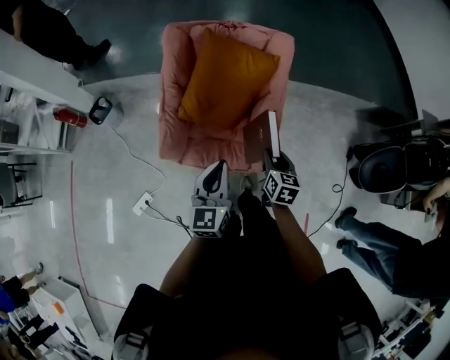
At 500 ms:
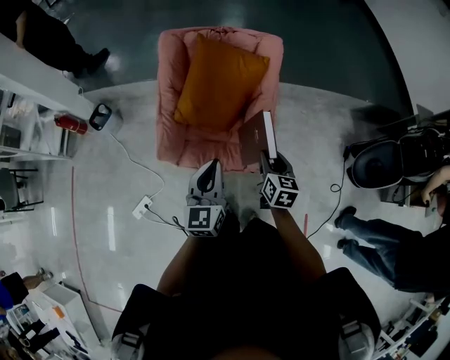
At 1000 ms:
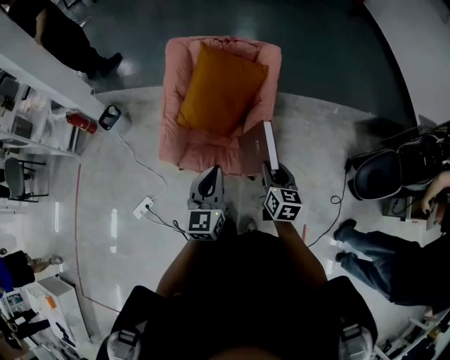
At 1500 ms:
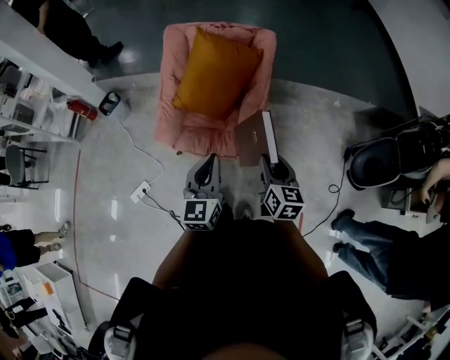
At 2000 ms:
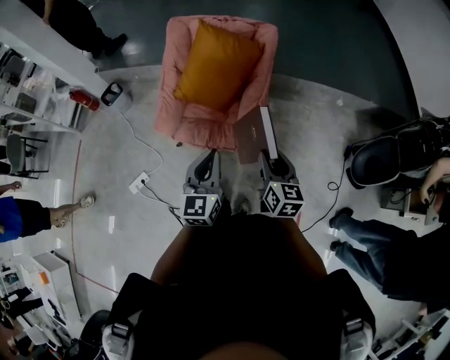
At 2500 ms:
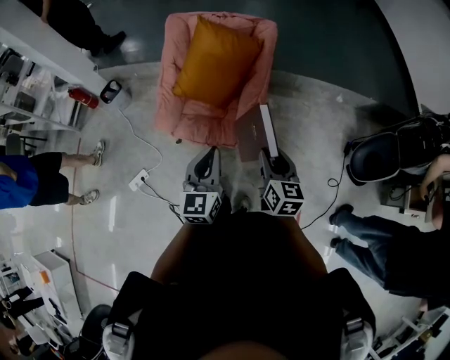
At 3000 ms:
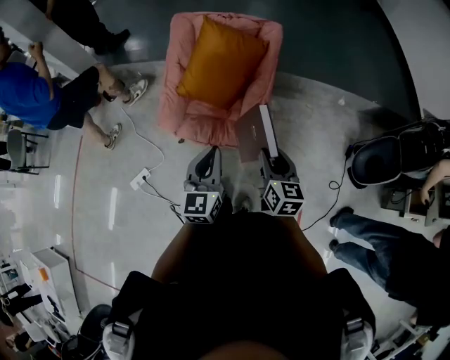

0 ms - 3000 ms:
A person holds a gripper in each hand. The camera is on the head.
0 ms - 1500 ms: The left gripper travels backward, to the right and upward by roughly 15 cm, while the right gripper goes about 20 cm backward, upward and to the right.
1500 ms - 3000 ms: The grippers move only a little.

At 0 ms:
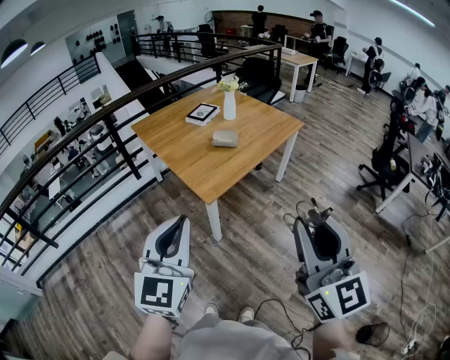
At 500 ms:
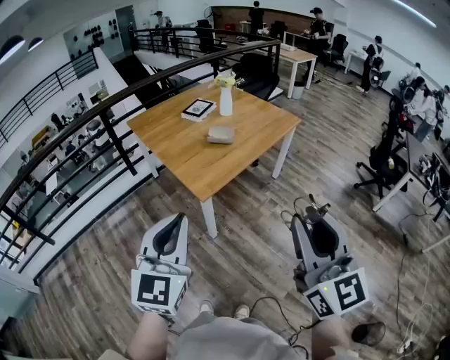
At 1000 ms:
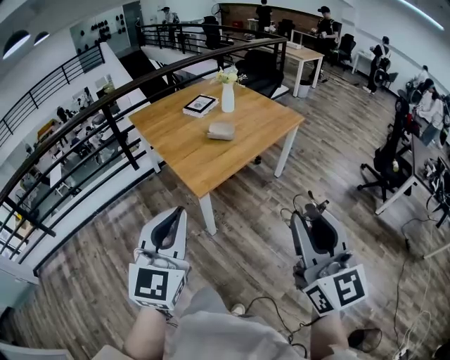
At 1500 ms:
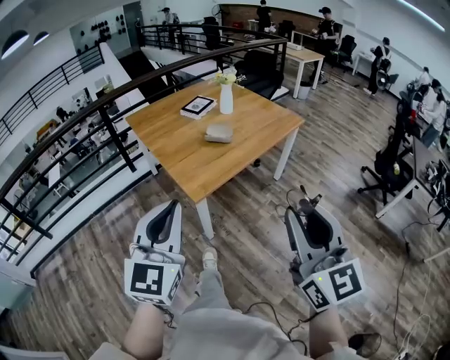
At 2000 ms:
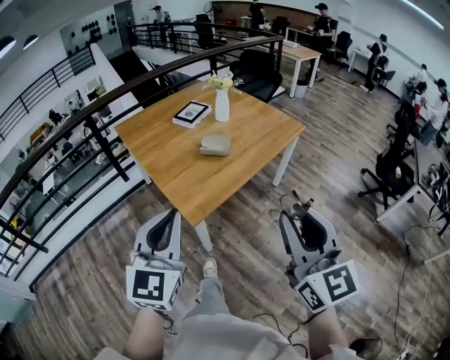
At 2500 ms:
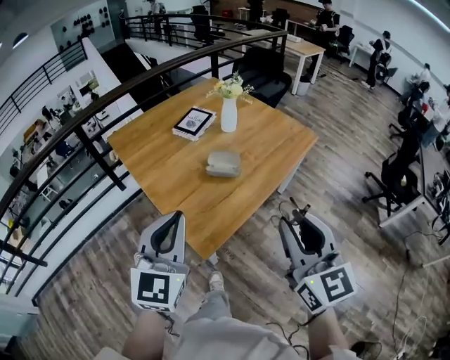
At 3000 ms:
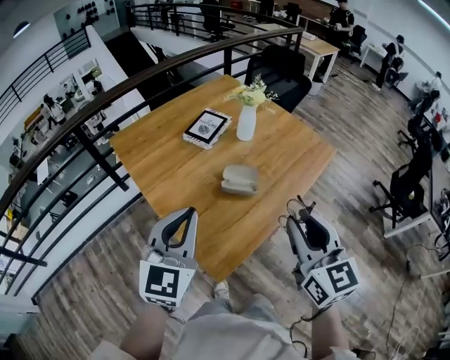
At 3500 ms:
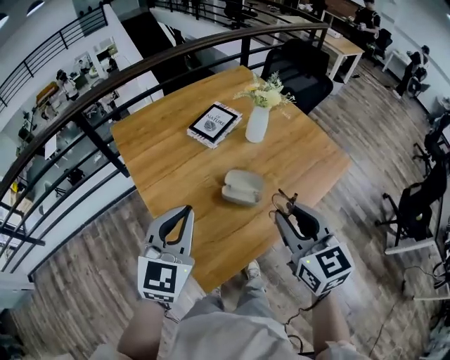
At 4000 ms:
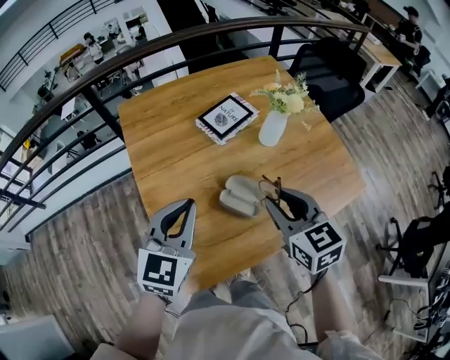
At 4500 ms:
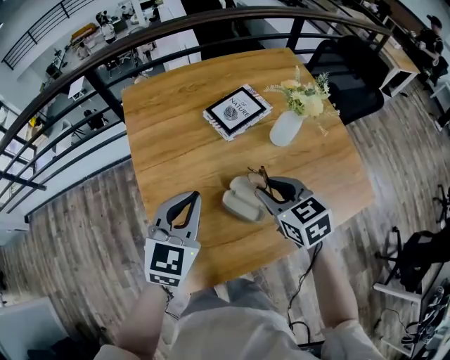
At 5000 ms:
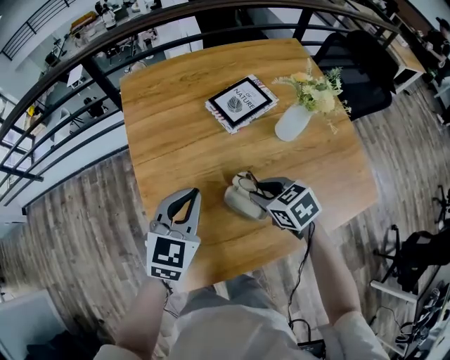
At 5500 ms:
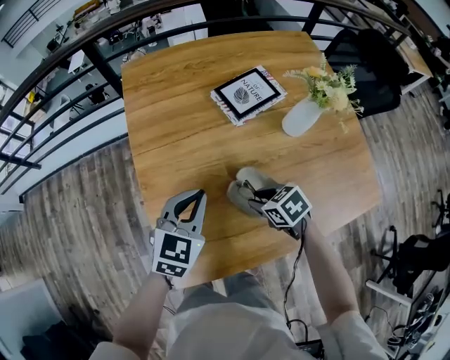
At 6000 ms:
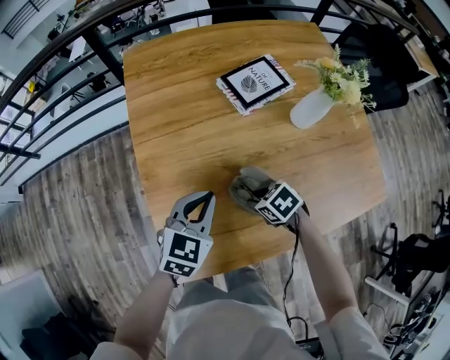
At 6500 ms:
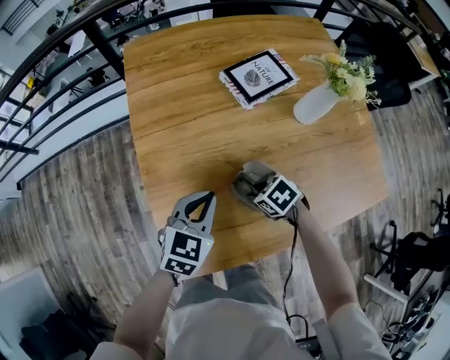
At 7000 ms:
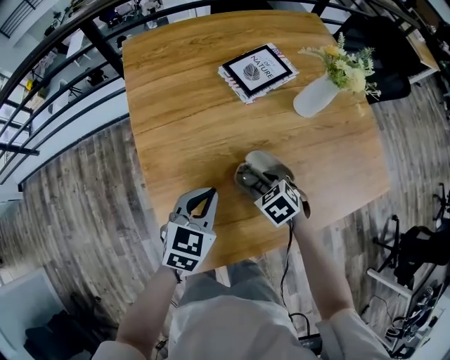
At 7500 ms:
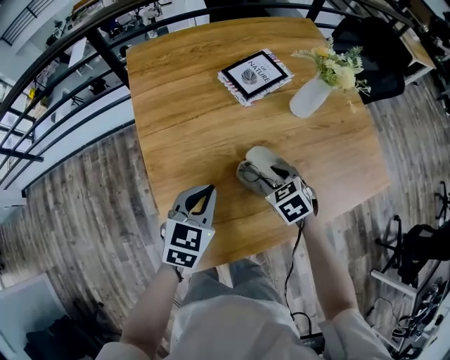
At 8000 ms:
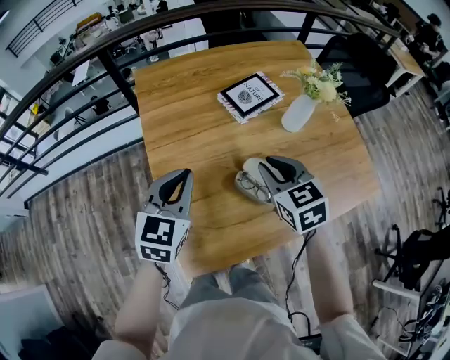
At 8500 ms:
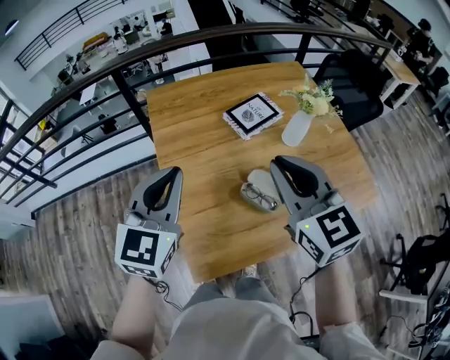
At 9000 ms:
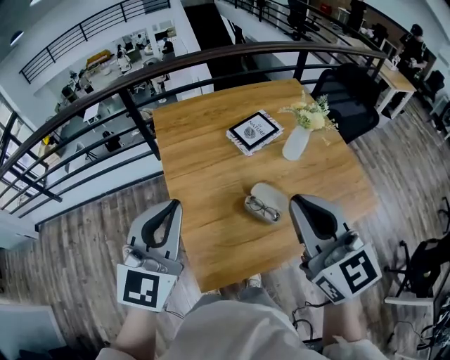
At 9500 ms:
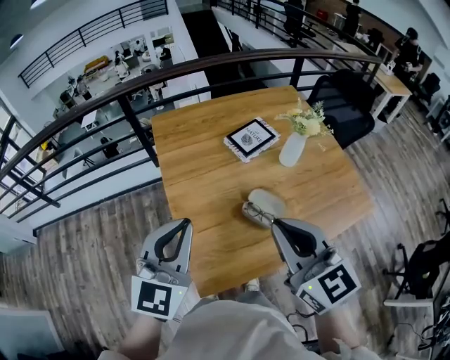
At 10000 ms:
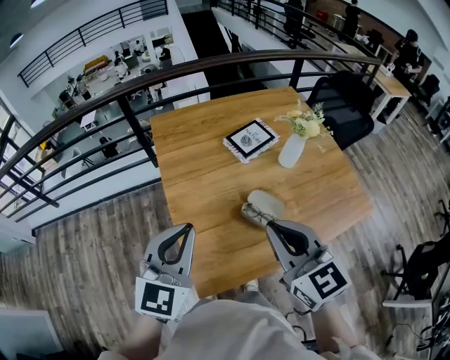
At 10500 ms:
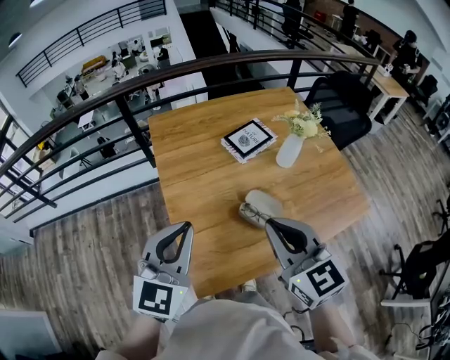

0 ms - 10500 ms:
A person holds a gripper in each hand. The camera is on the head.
0 ms - 2000 ms: The grippers both shift forward by roughly 20 cm.
2000 ms - 4000 ms: The pair of grippers is taken forward, some 50 cm. The right gripper angles its fingers downward, by some 30 degrees.
4000 ms - 6500 ms: The right gripper moves downward, some 30 cm, and points its fingers some 40 degrees further downward; the left gripper is displaced downward by about 20 cm, and swivels some 20 degrees.
6500 ms - 8500 ms: The left gripper moves upward, roughly 25 cm, and changes its angle by approximately 30 degrees; the right gripper is displaced upward by approximately 40 cm, angles its fingers upward, by roughly 50 degrees, and closes its fingers.
8500 ms - 10500 ms: Both grippers travel together backward, about 10 cm.

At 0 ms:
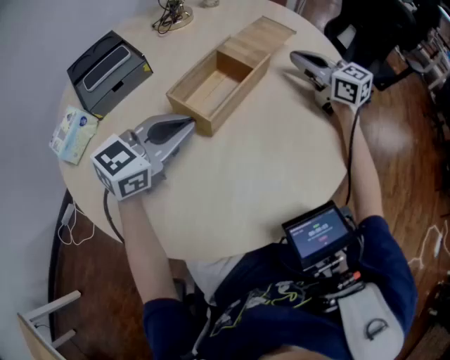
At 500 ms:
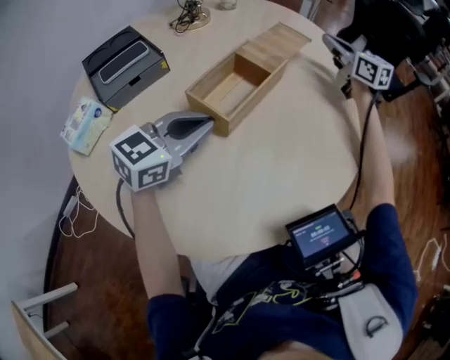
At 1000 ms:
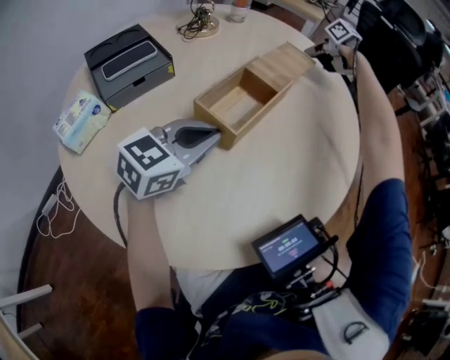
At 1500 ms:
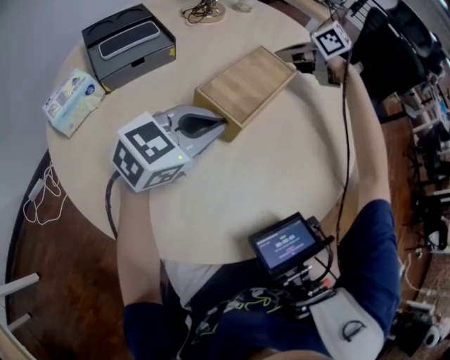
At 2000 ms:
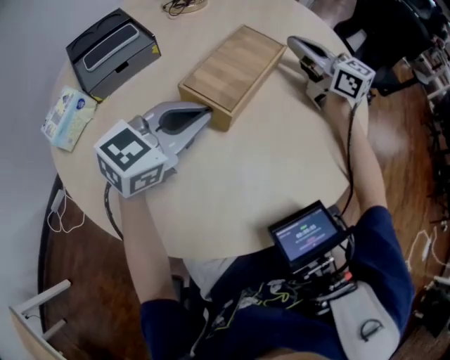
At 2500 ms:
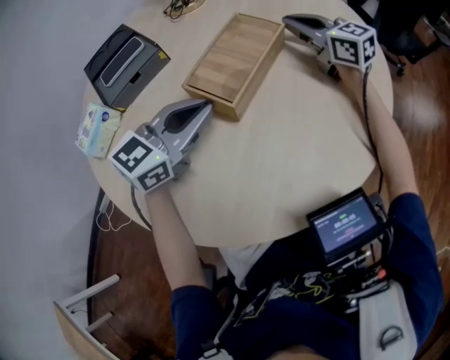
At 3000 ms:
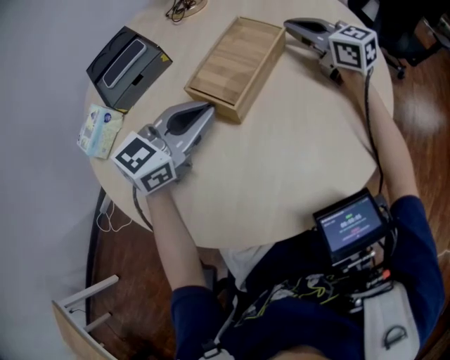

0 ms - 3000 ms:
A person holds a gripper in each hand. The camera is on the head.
0 ms - 1500 ms: The right gripper moves about 5 cm upward and comes back, and angles its fingers downward, by about 30 degrees.
1500 ms - 3000 ms: The right gripper moves approximately 5 cm, and tips its fingers upward by about 30 degrees.

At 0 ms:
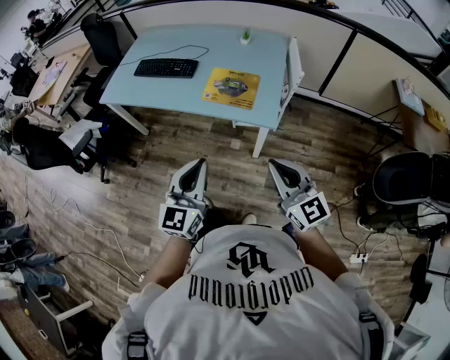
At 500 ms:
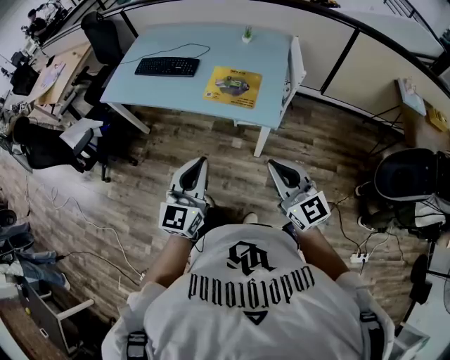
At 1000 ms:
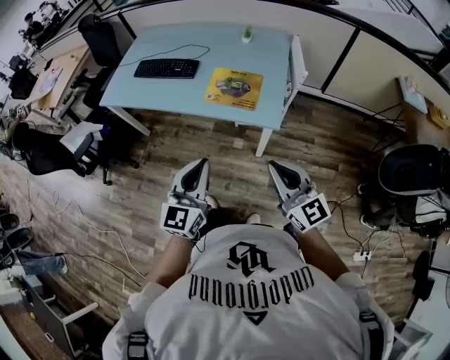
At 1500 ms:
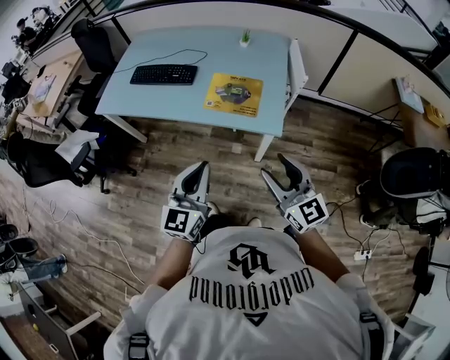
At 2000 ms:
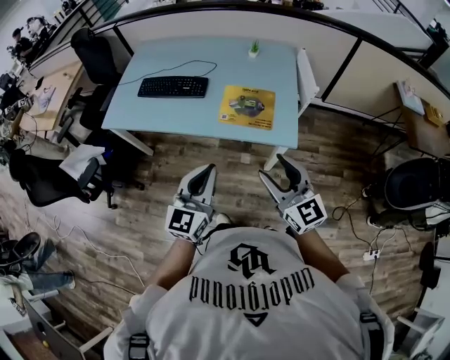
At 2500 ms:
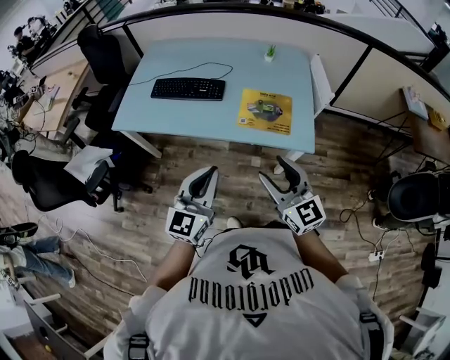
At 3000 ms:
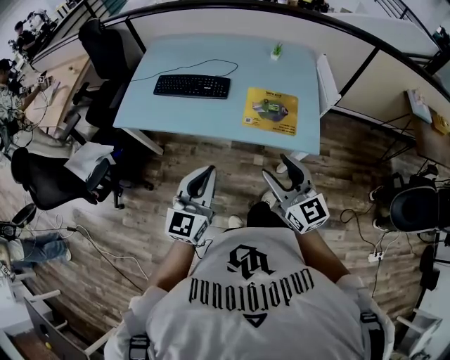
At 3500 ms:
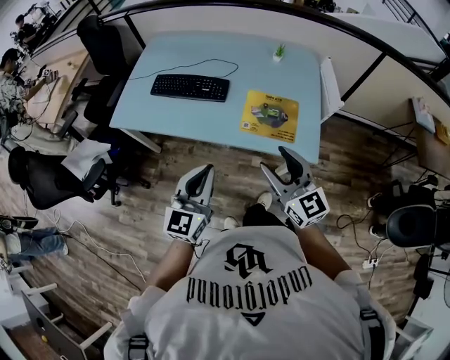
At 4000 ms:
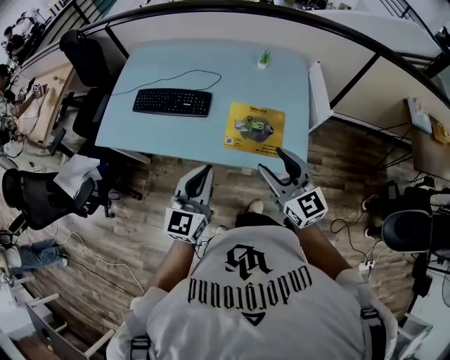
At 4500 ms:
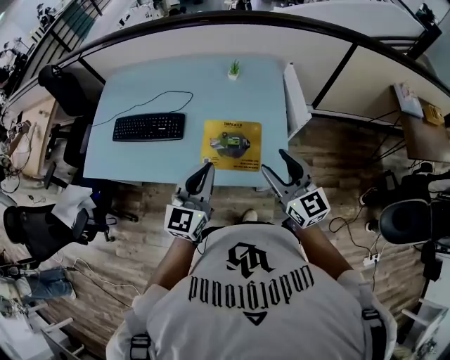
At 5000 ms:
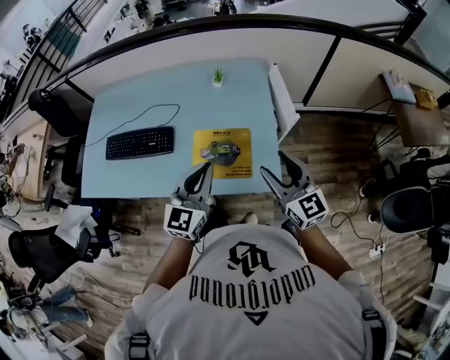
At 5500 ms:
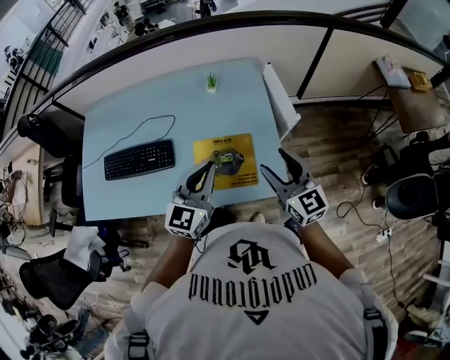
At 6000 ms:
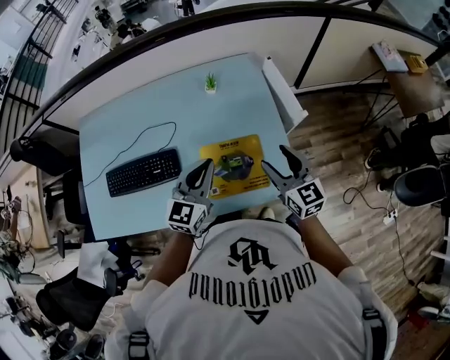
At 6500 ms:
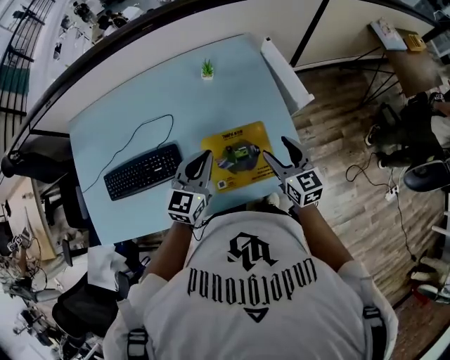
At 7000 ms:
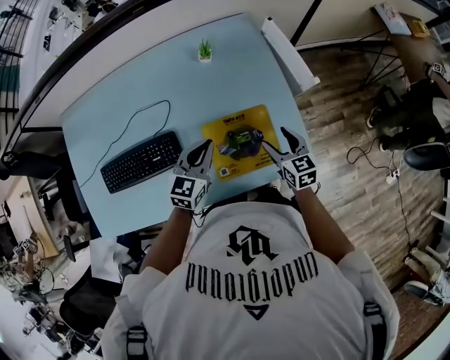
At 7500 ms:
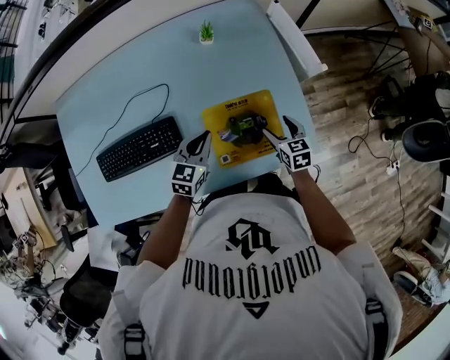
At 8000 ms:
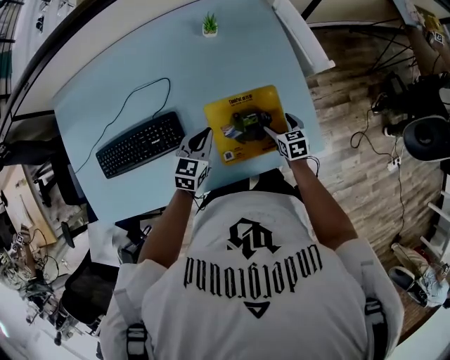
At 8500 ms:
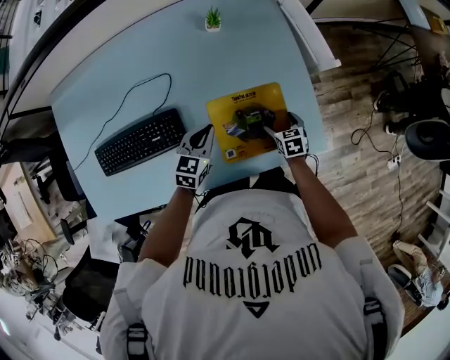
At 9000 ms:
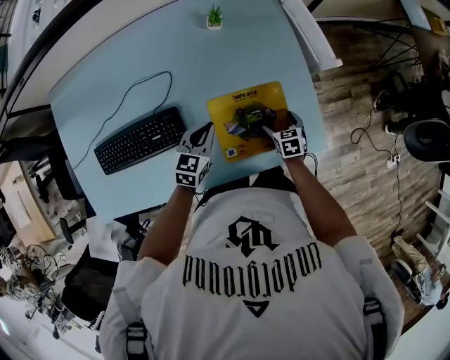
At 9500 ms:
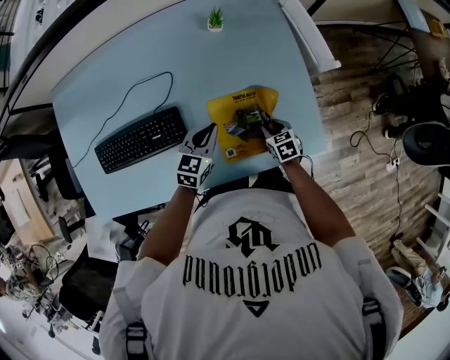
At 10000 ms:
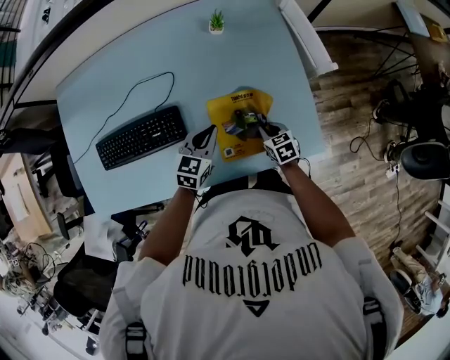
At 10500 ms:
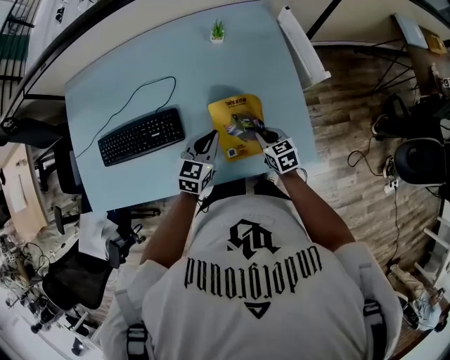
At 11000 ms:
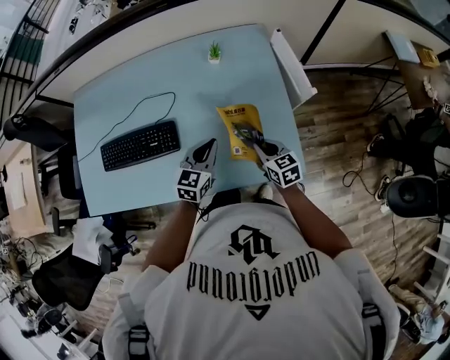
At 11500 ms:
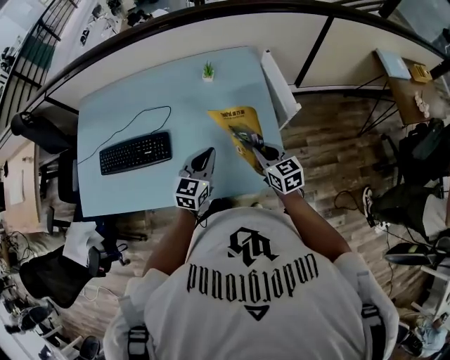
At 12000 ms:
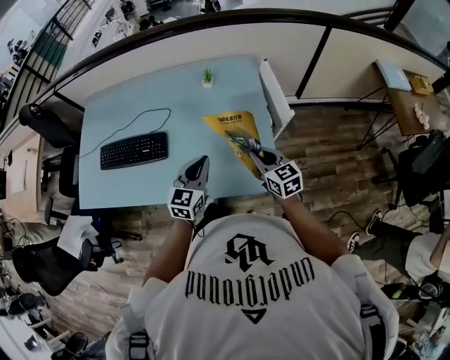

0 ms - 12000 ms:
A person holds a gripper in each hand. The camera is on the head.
0 ms - 2000 ms: The right gripper goes about 20 cm to the left and forward, and opens up. The left gripper moves forward and to the left, roughly 15 cm.
2000 ms - 4000 ms: Both grippers travel together forward, approximately 20 cm.
4000 ms - 6000 ms: The right gripper ends up about 25 cm from where it was, and changes its angle by some 30 degrees. Meanwhile the left gripper shifts by about 30 cm, and rotates roughly 30 degrees.
6000 ms - 8000 ms: Both grippers travel together downward, approximately 30 cm. The right gripper angles its fingers downward, by about 40 degrees. The left gripper turns by approximately 30 degrees.
8000 ms - 10000 ms: The right gripper moves to the left, some 5 cm, and closes up.
10000 ms - 12000 ms: The left gripper goes roughly 20 cm upward, backward and to the right, and changes its angle by approximately 20 degrees. Meanwhile the right gripper heads upward and to the right, covering roughly 25 cm, and points its fingers approximately 30 degrees further upward.
